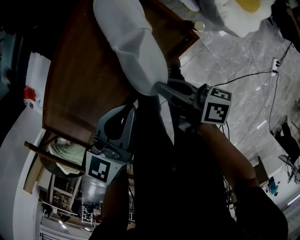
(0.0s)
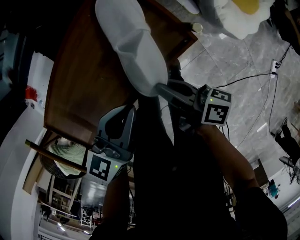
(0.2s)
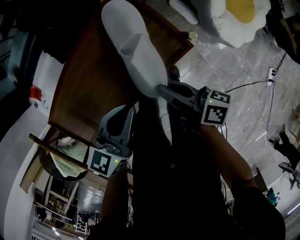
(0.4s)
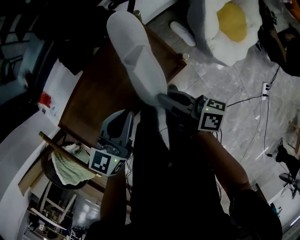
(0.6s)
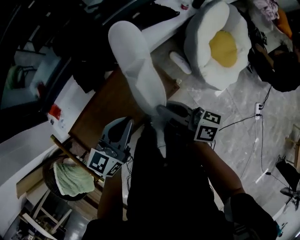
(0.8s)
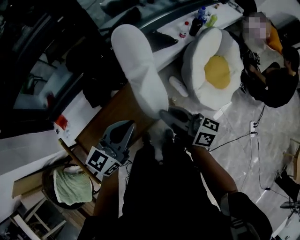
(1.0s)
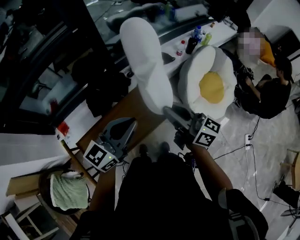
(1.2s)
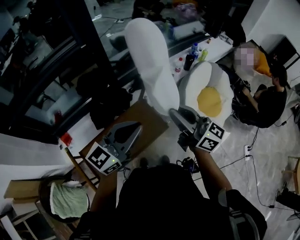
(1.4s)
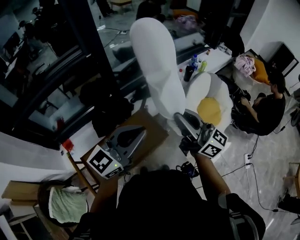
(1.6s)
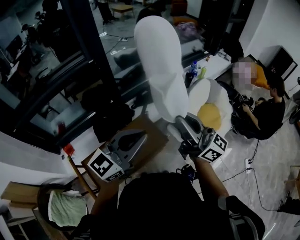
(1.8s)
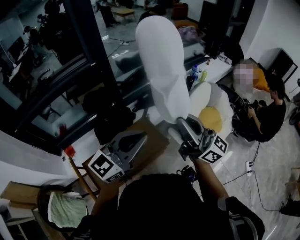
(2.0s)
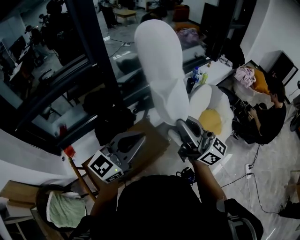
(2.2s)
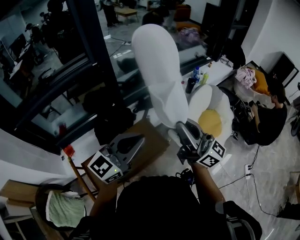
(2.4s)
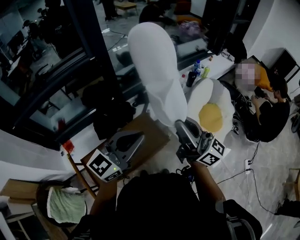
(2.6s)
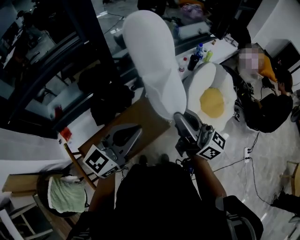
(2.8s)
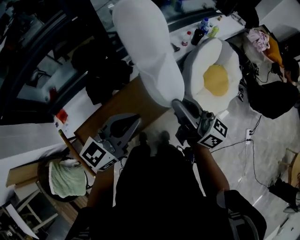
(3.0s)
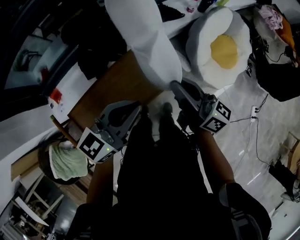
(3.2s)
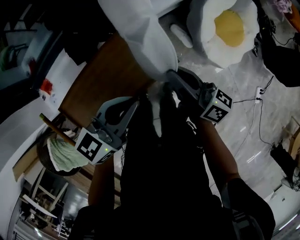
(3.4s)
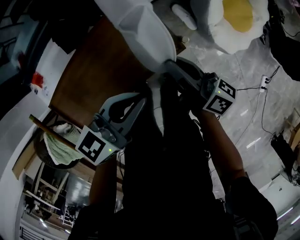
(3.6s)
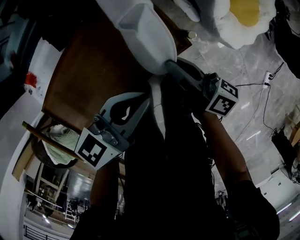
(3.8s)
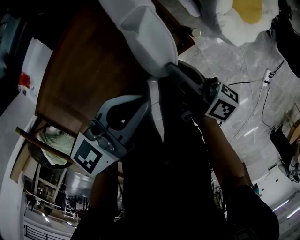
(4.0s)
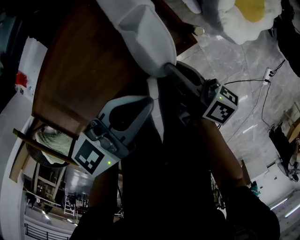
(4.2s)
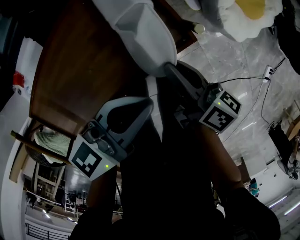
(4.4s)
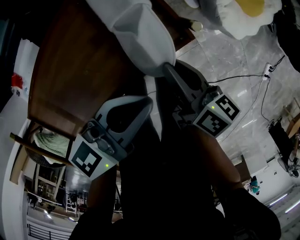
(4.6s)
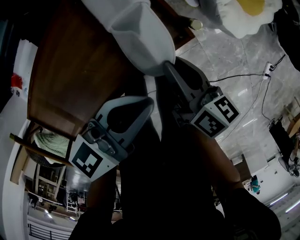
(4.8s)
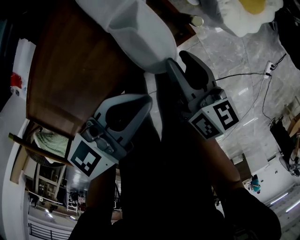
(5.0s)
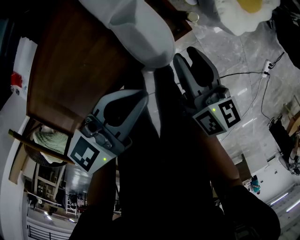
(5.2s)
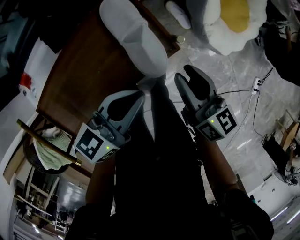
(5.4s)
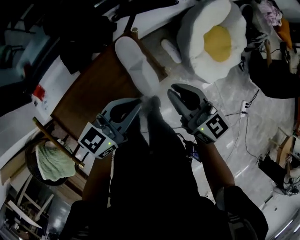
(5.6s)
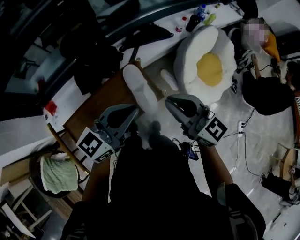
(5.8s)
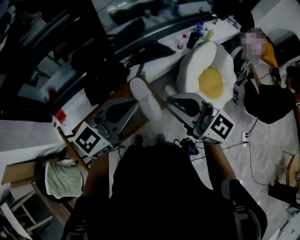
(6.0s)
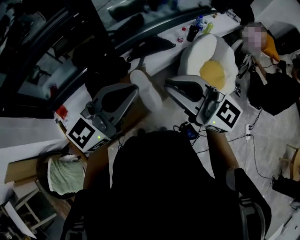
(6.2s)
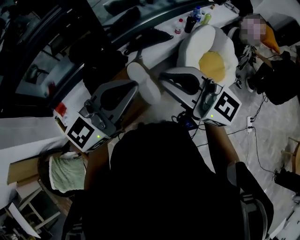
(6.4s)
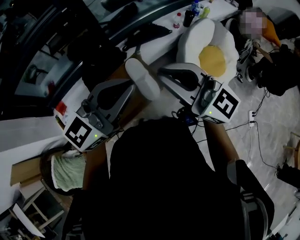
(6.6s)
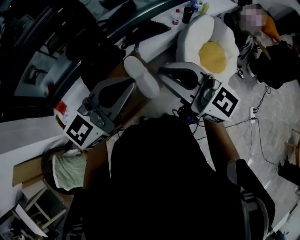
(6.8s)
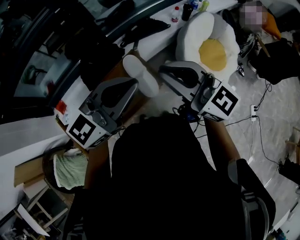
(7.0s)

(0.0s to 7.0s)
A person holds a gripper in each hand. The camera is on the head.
0.0s - 1.4s: The two grippers go some 40 cm upward. The left gripper rotates roughly 40 degrees. The right gripper twists roughly 60 degrees counterclockwise, seen from behind.
2.8s - 4.2s: The grippers both shift downward by roughly 40 cm. The left gripper changes its angle by roughly 40 degrees. Meanwhile the right gripper tips its fingers downward by some 40 degrees.
4.2s - 5.6s: The right gripper travels upward by approximately 25 cm, and rotates around the line of its fingers by roughly 50 degrees, counterclockwise from behind. Meanwhile the left gripper is displaced upward by about 15 cm.
5.6s - 7.0s: The two grippers go about 20 cm upward. The right gripper rotates approximately 30 degrees, while the left gripper turns by some 30 degrees.

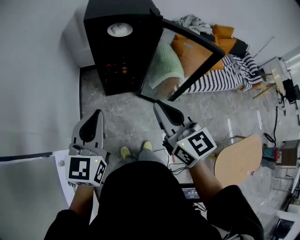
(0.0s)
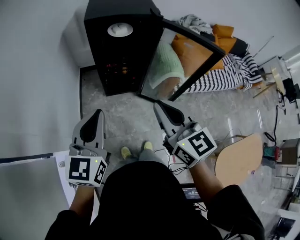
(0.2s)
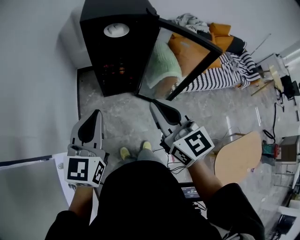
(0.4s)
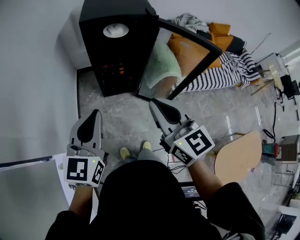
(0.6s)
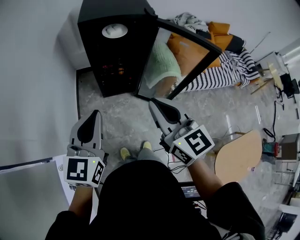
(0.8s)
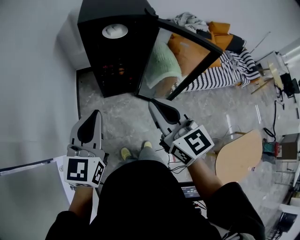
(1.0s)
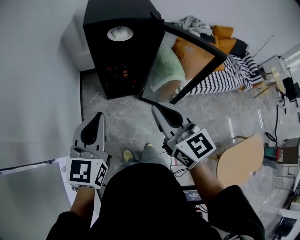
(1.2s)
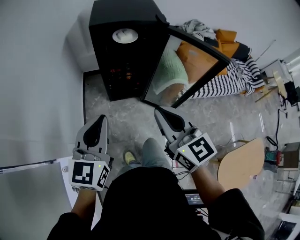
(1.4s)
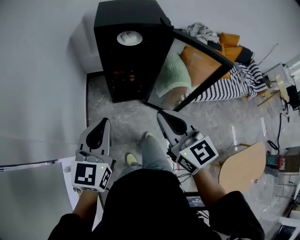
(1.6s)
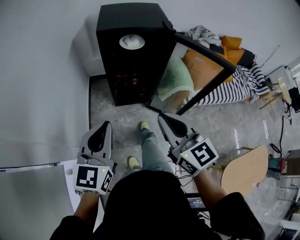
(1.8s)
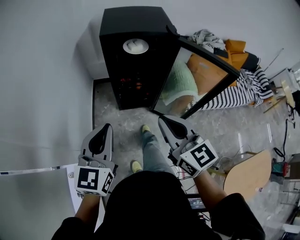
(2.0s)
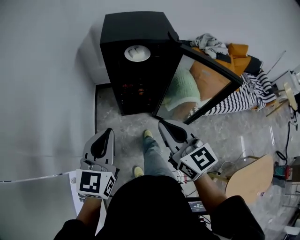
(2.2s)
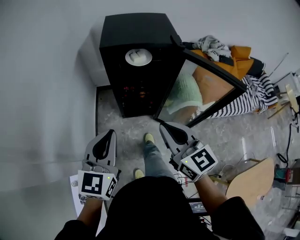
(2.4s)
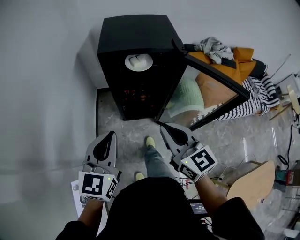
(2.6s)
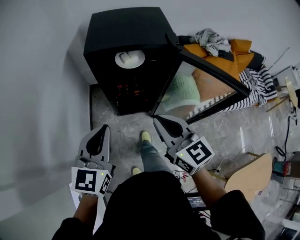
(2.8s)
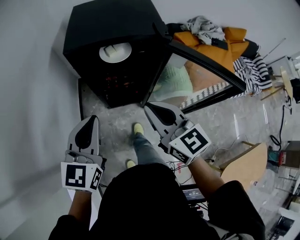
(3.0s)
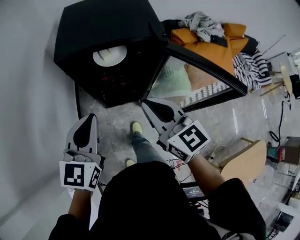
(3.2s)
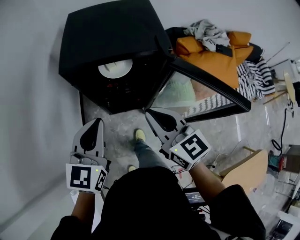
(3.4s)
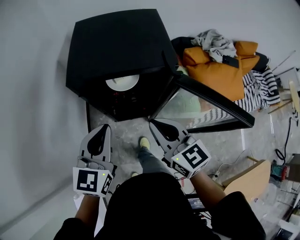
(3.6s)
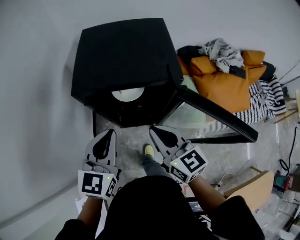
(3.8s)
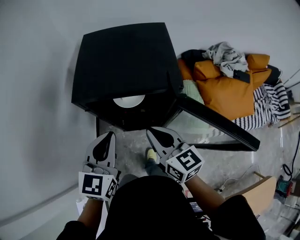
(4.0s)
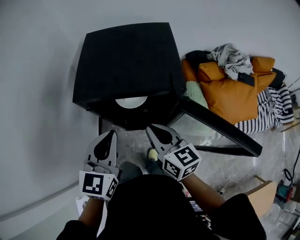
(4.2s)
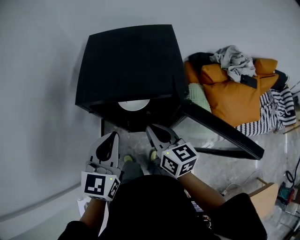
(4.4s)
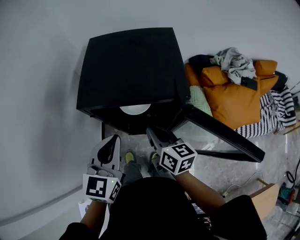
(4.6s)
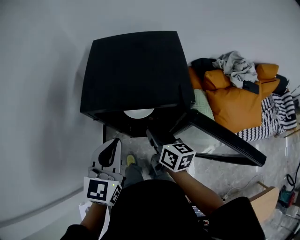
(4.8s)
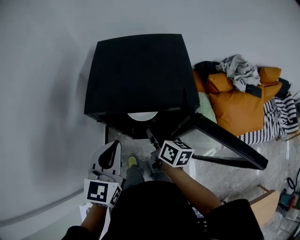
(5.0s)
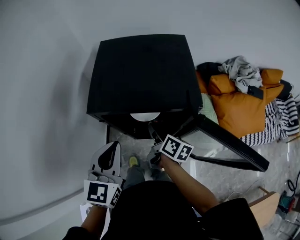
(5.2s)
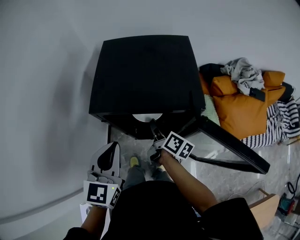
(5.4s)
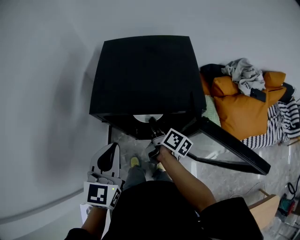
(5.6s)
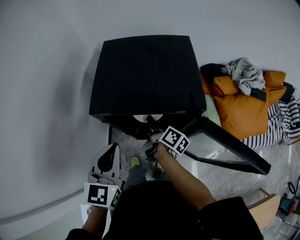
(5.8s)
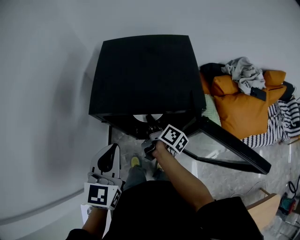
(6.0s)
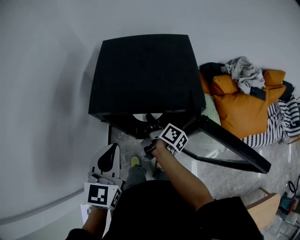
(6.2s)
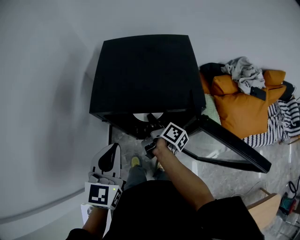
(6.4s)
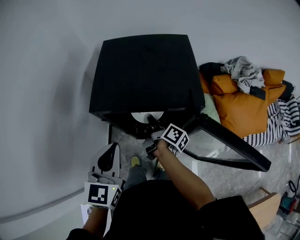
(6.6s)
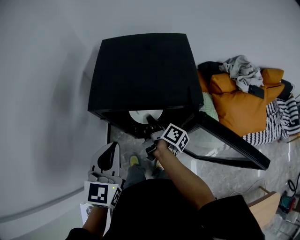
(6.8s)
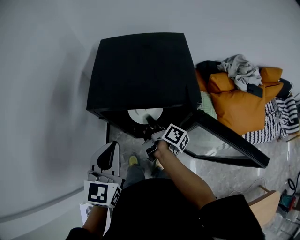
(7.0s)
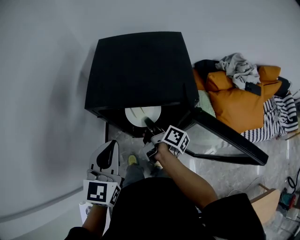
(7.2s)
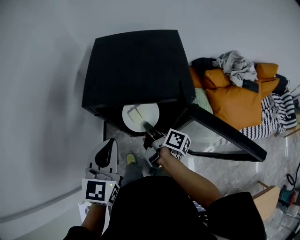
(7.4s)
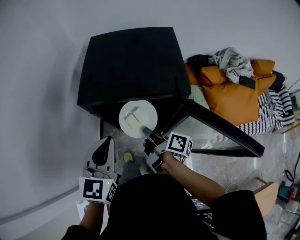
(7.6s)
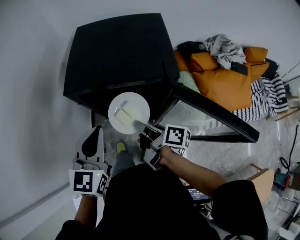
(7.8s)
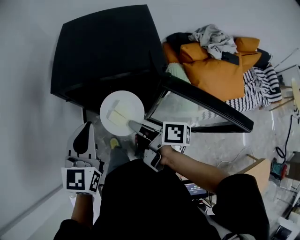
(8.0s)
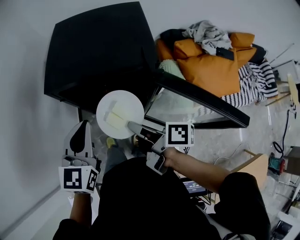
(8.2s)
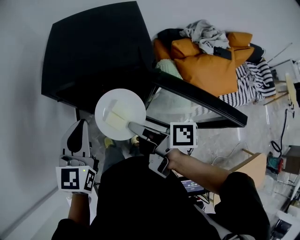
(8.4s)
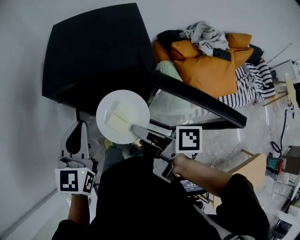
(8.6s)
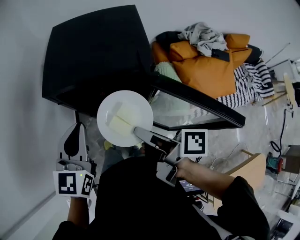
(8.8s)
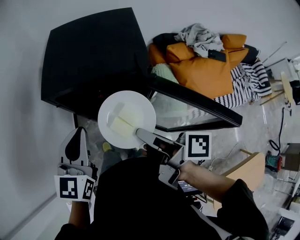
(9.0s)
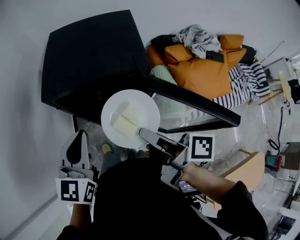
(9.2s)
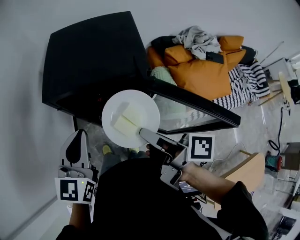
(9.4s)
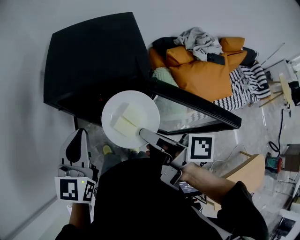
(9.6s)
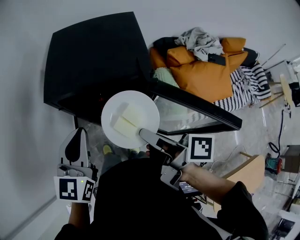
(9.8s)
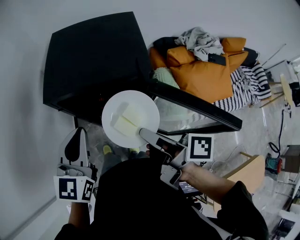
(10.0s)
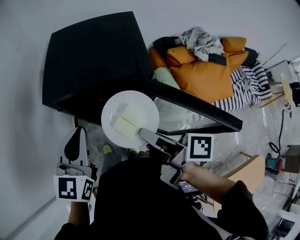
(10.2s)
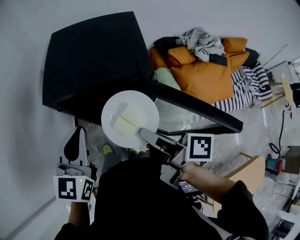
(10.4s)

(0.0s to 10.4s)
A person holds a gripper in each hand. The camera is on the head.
0.0s - 1.4s: The grippers move only a little.
1.4s - 3.0s: Both grippers move forward, roughly 20 cm.
3.0s - 4.4s: The right gripper goes roughly 15 cm forward, and changes its angle by roughly 20 degrees. Meanwhile the left gripper goes roughly 15 cm forward and to the right.
4.4s - 6.0s: The right gripper is displaced forward and downward by some 15 cm, twists roughly 50 degrees clockwise, seen from behind, and opens its fingers; the left gripper ends up some 5 cm from where it was.
6.0s - 7.4s: The right gripper moves backward, roughly 5 cm, and closes.
7.4s - 9.0s: The right gripper travels upward and backward by approximately 20 cm.
9.0s - 10.4s: The grippers stay close to where they were, moving slightly.

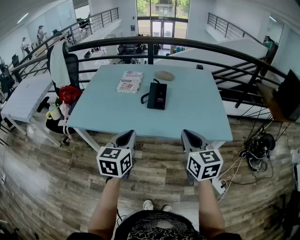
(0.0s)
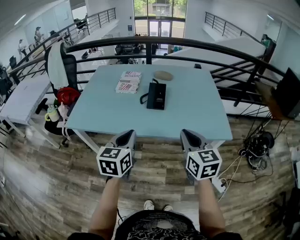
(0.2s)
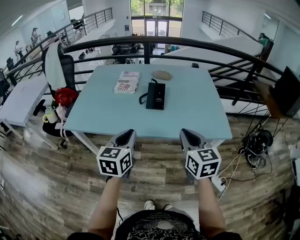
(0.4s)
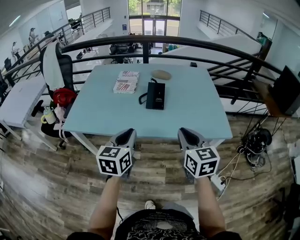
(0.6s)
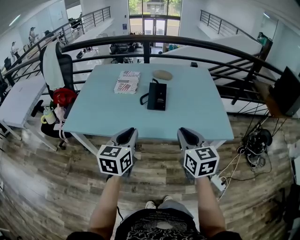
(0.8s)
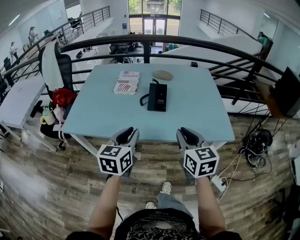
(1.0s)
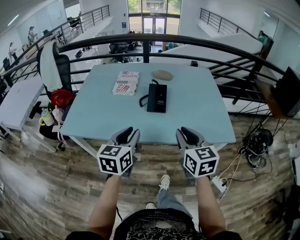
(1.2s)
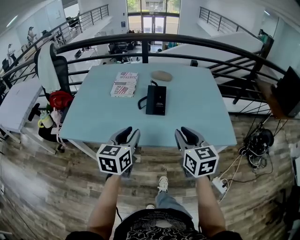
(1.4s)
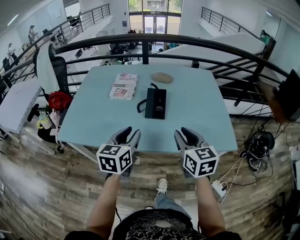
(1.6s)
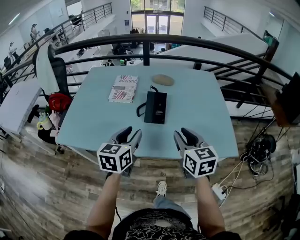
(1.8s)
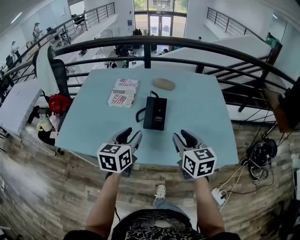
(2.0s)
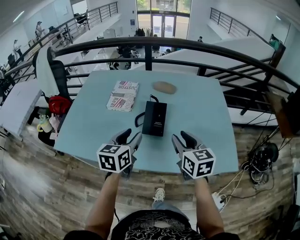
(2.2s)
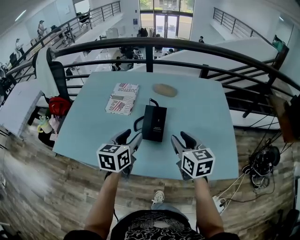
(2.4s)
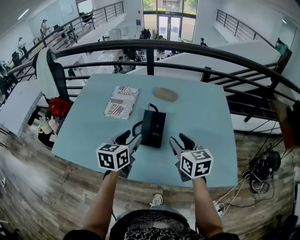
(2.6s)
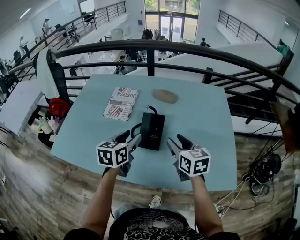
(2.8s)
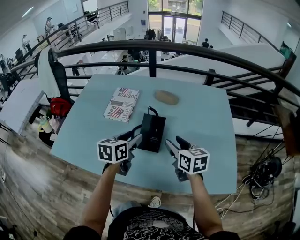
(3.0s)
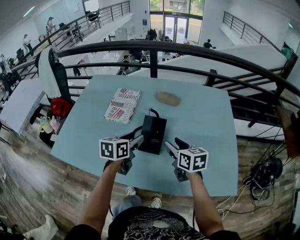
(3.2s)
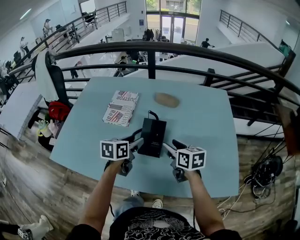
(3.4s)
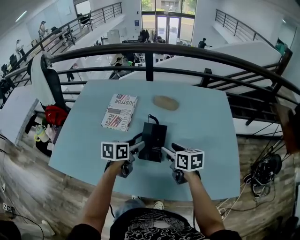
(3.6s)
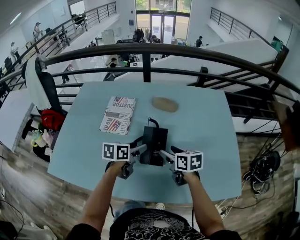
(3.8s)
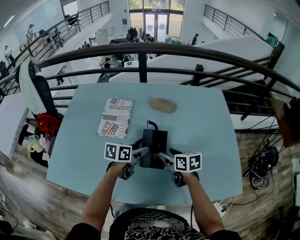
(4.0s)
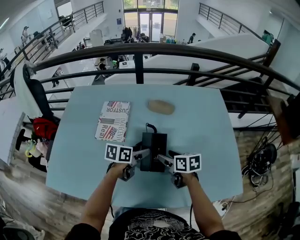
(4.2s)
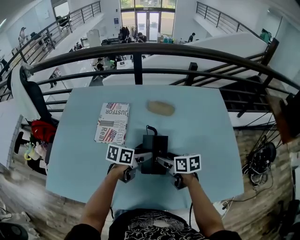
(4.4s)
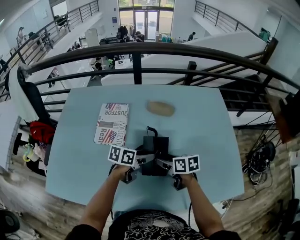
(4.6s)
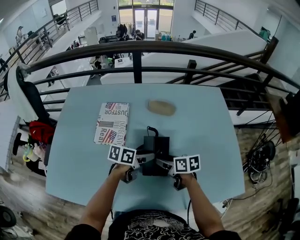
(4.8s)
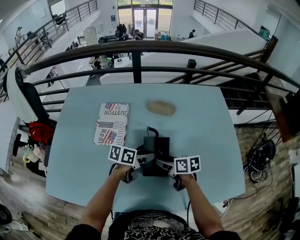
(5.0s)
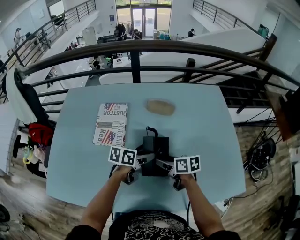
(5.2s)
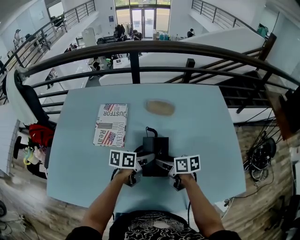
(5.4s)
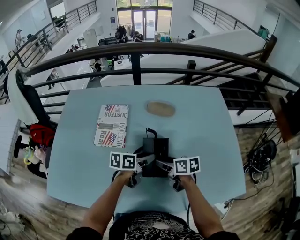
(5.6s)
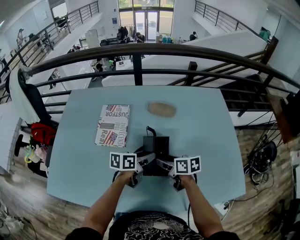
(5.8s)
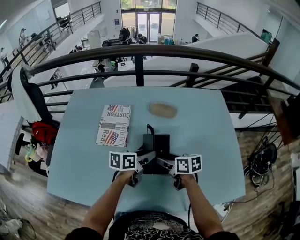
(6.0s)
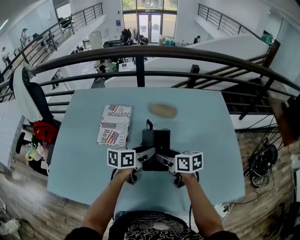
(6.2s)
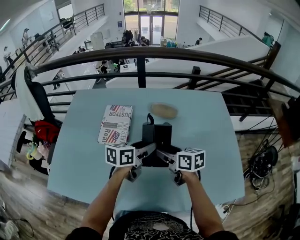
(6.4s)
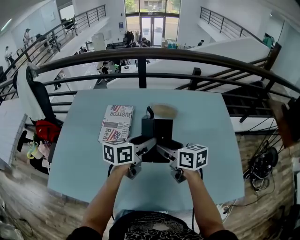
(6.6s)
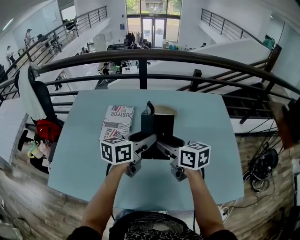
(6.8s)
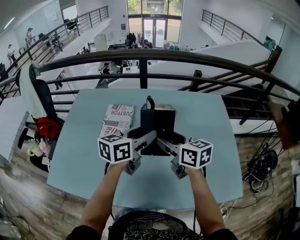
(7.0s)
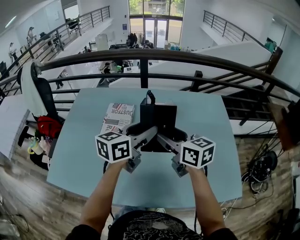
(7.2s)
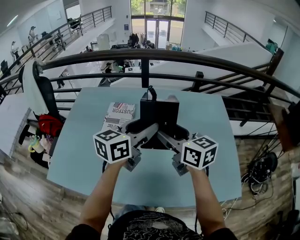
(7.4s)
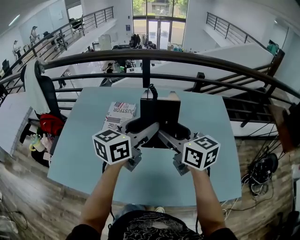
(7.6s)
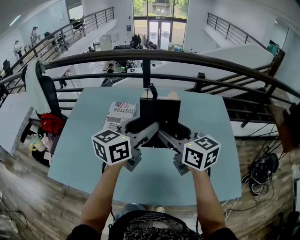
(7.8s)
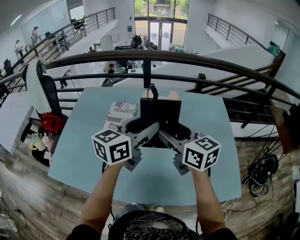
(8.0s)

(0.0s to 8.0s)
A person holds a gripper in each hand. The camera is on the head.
0.0s - 1.6s: The grippers both shift forward by roughly 15 cm. The left gripper opens its fingers.
1.6s - 3.2s: Both grippers travel together forward, approximately 25 cm. The right gripper swivels about 20 degrees, and opens its fingers.
3.2s - 4.8s: The right gripper goes some 15 cm downward, to the left and forward, and swivels approximately 20 degrees, while the left gripper heads downward and forward, covering about 15 cm, and swivels approximately 40 degrees.
4.8s - 6.4s: Both grippers move upward, some 10 cm. The left gripper changes its angle by roughly 20 degrees.
6.4s - 8.0s: The grippers both shift upward by some 20 cm. The right gripper turns by approximately 30 degrees. The left gripper swivels about 30 degrees.
